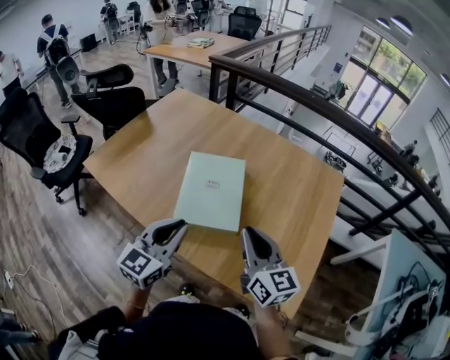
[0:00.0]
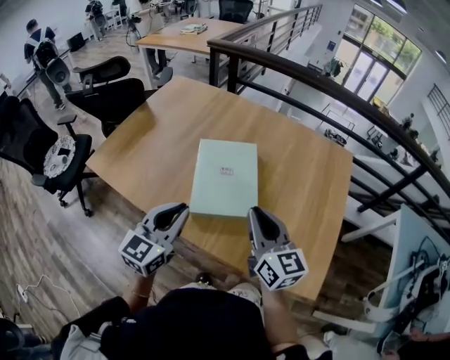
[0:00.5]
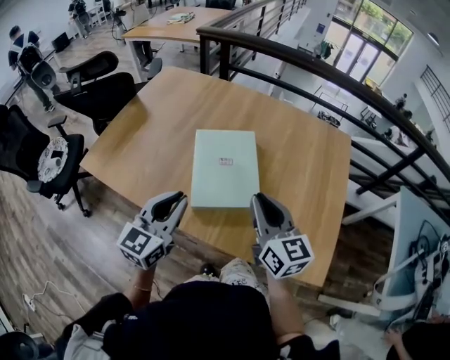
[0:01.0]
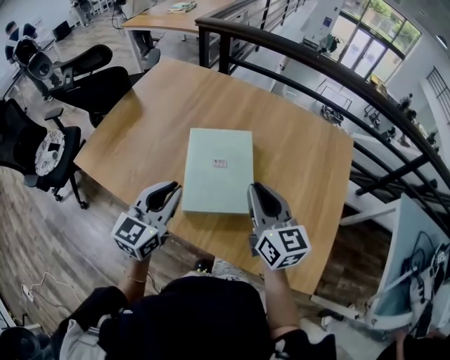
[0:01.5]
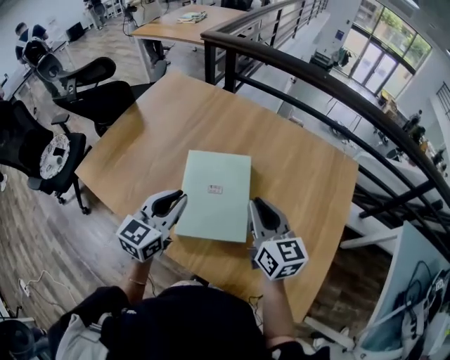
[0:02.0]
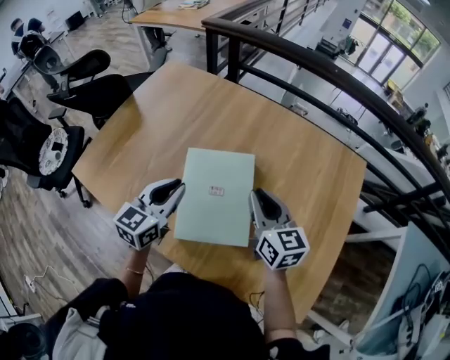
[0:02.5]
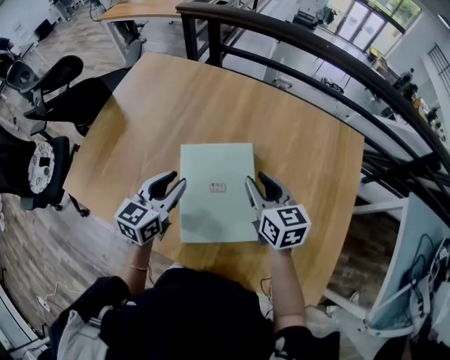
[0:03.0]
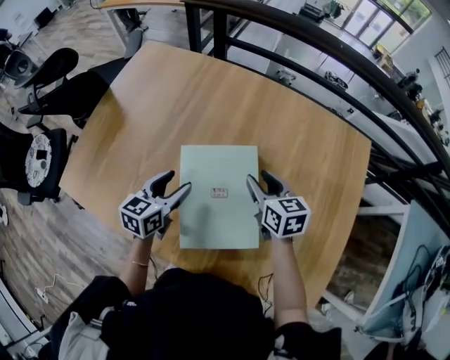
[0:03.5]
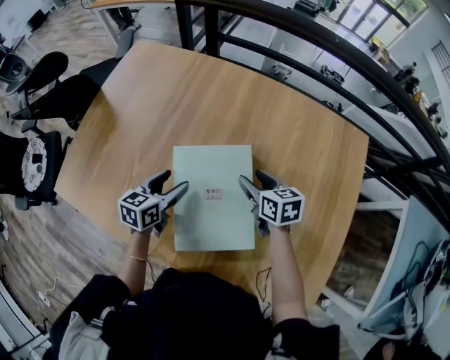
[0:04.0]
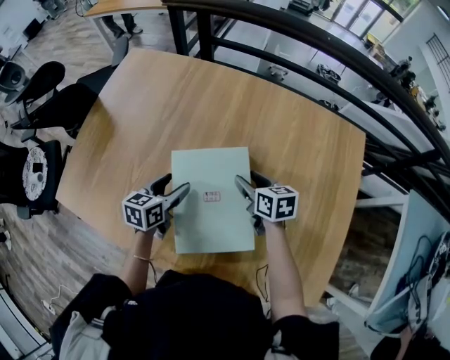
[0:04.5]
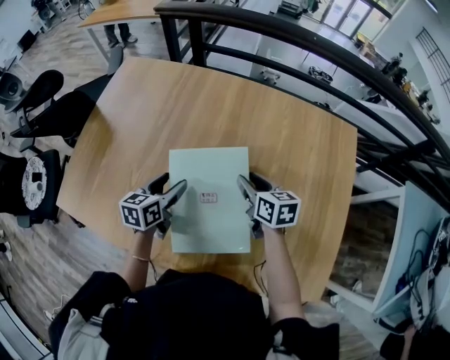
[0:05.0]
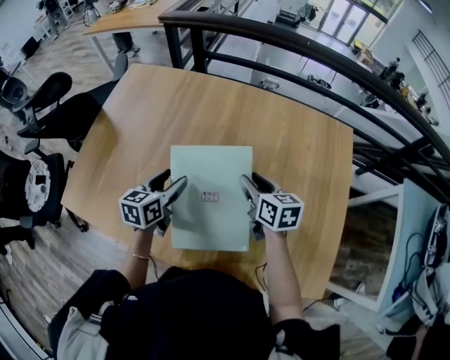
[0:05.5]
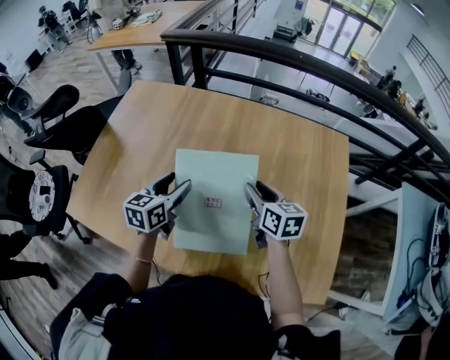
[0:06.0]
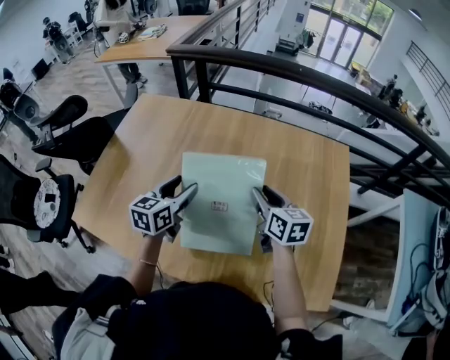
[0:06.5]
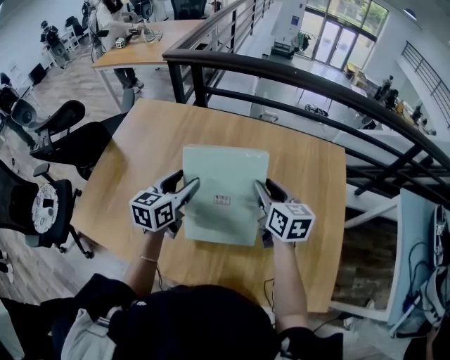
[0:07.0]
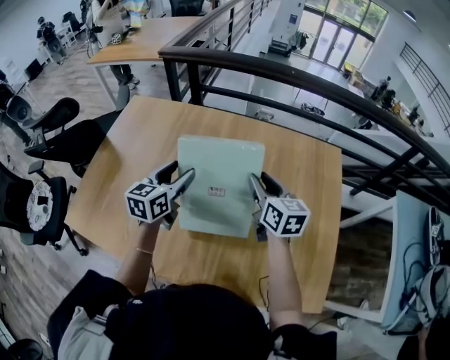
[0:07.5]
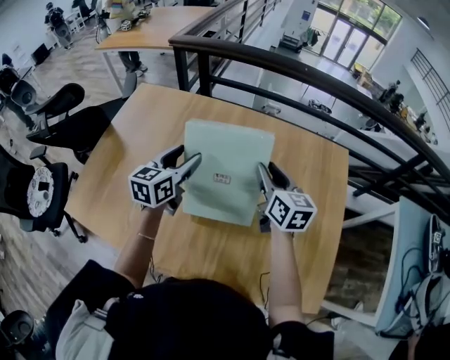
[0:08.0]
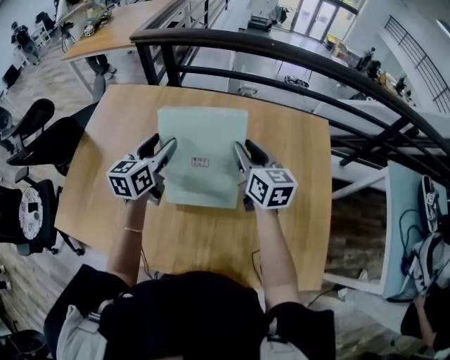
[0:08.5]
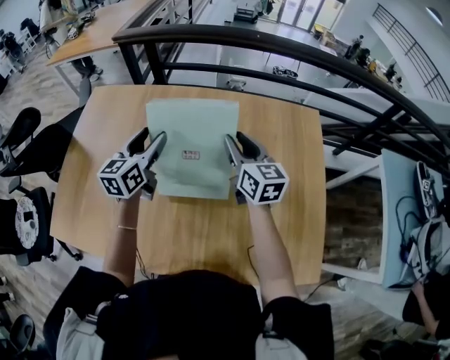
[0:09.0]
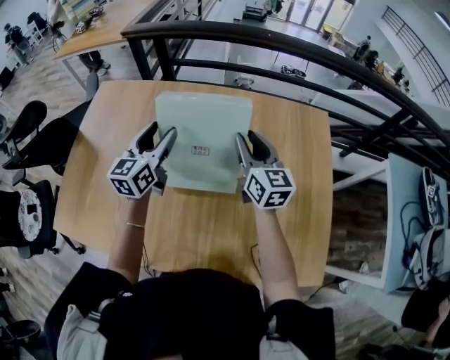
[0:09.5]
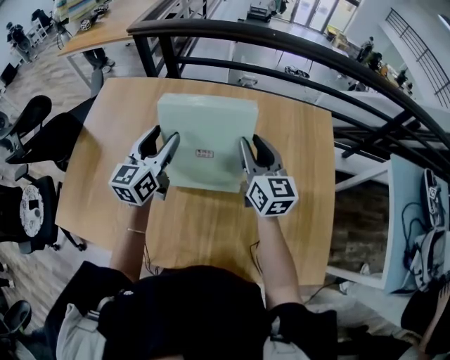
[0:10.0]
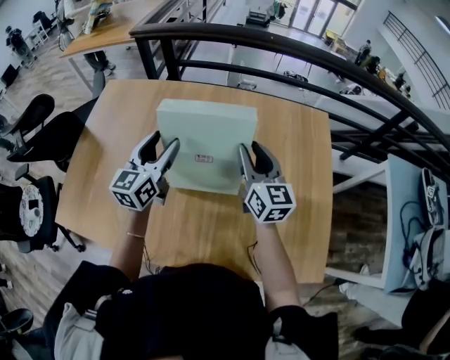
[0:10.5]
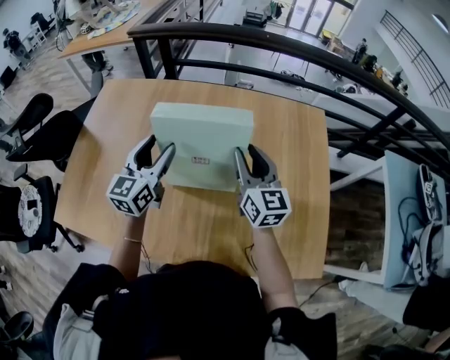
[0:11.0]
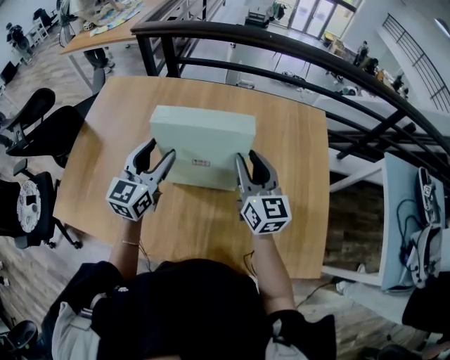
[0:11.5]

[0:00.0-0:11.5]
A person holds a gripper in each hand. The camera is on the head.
0:00.0 to 0:02.0: The grippers both shift forward by approximately 15 cm.
0:02.0 to 0:04.0: The two grippers go approximately 25 cm downward and forward. The left gripper rotates some 30 degrees, and opens. The right gripper changes its angle by approximately 30 degrees, and opens.
0:04.0 to 0:06.0: The right gripper heads upward and backward, covering roughly 10 cm, while the left gripper travels upward by about 10 cm.
0:06.0 to 0:07.5: The right gripper travels upward by some 5 cm; the left gripper heads upward and forward, covering roughly 10 cm.
0:07.5 to 0:09.5: The left gripper heads forward, covering roughly 5 cm, while the right gripper changes place by some 5 cm.
0:09.5 to 0:11.5: Both grippers move backward, some 10 cm.

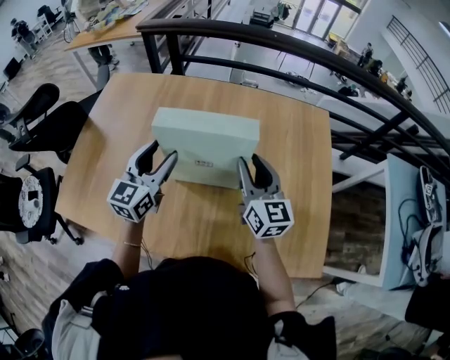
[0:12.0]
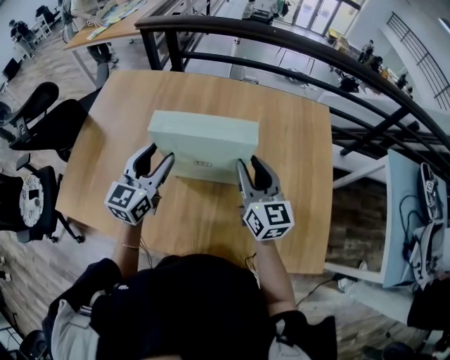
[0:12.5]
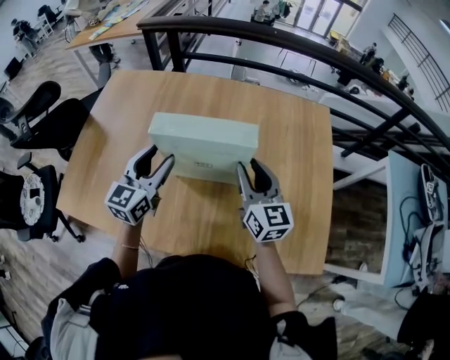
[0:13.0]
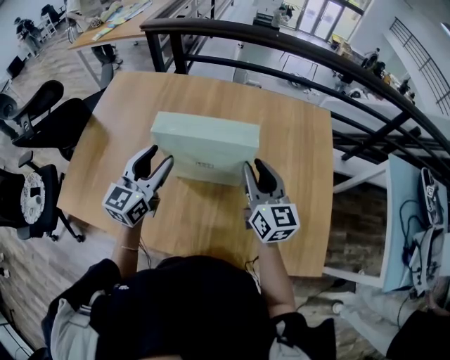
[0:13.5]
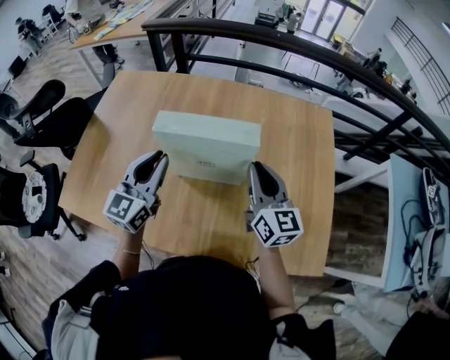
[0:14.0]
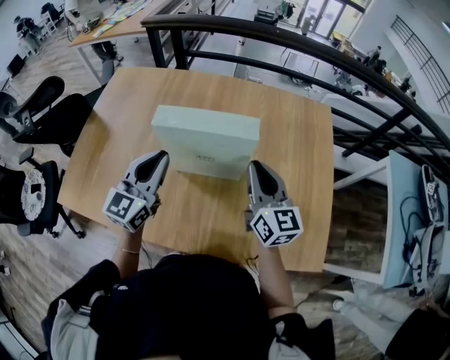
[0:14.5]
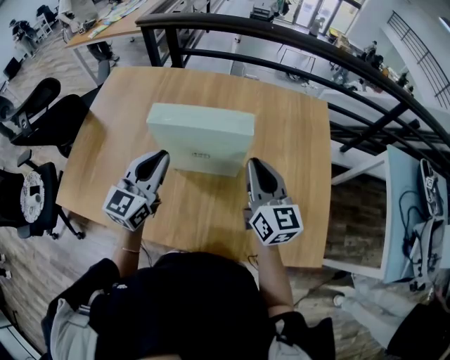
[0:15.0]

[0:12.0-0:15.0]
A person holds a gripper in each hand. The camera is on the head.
0:12.0 to 0:13.5: The grippers move only a little.
0:13.5 to 0:15.0: The right gripper closes its fingers; the left gripper closes up.

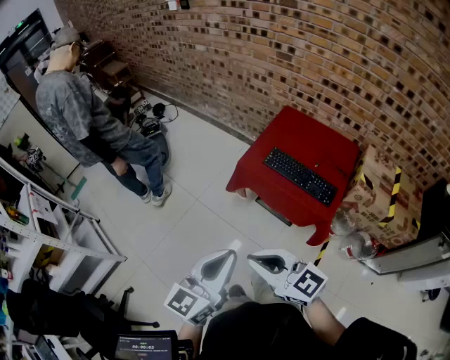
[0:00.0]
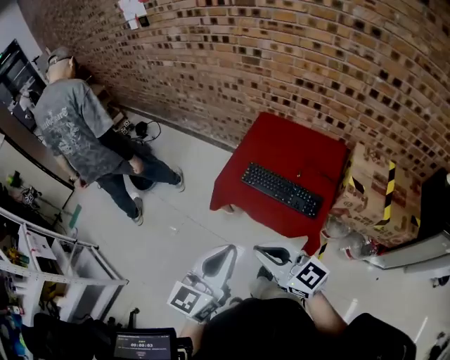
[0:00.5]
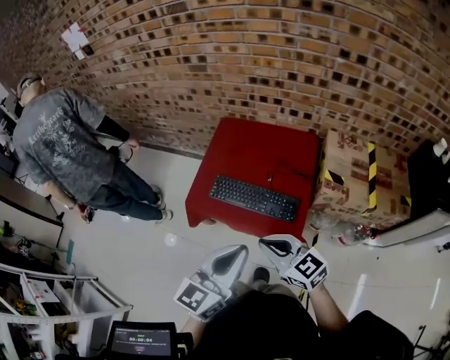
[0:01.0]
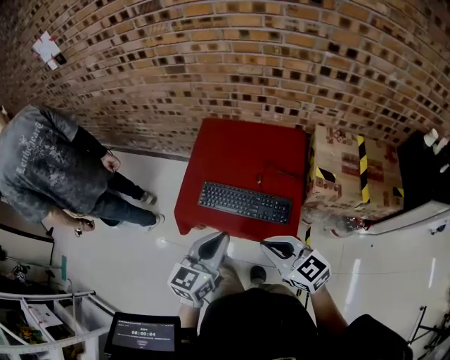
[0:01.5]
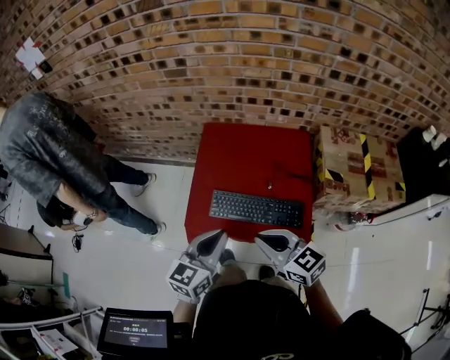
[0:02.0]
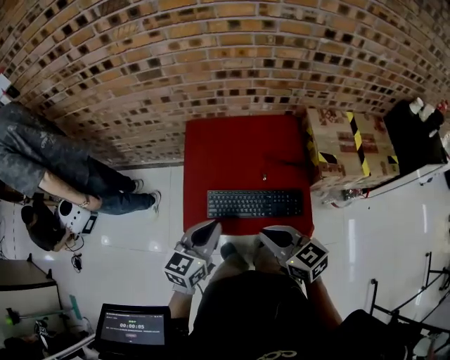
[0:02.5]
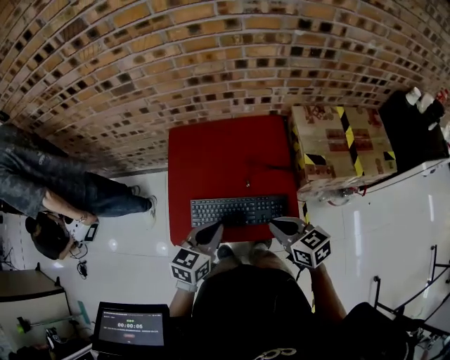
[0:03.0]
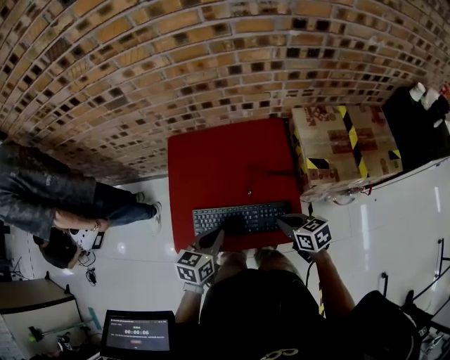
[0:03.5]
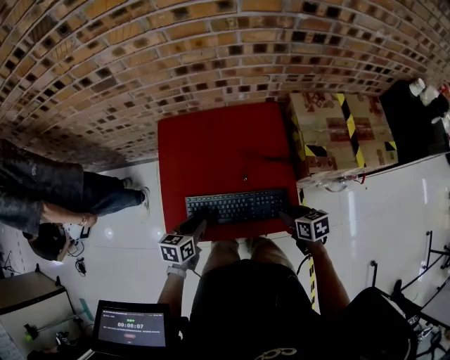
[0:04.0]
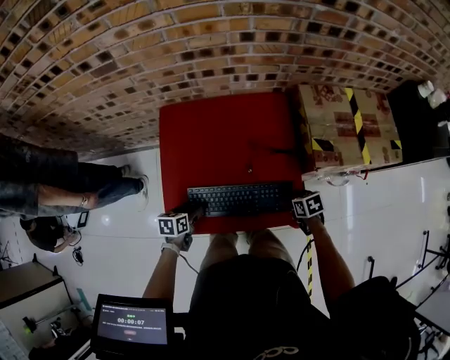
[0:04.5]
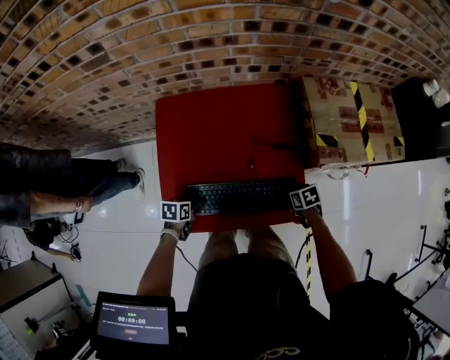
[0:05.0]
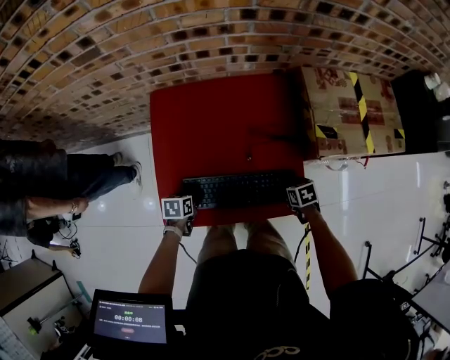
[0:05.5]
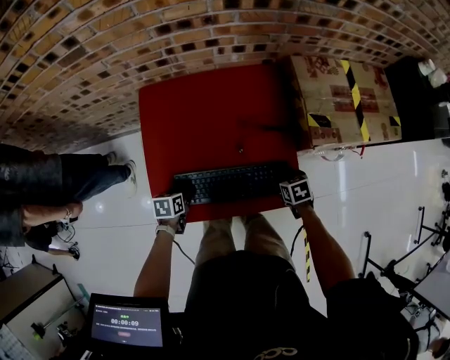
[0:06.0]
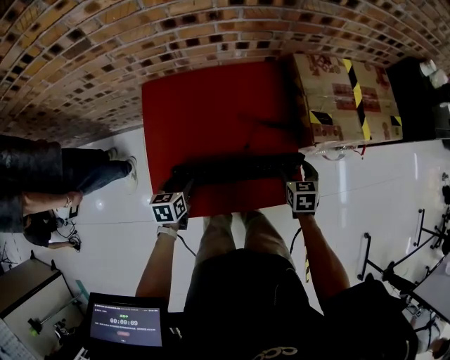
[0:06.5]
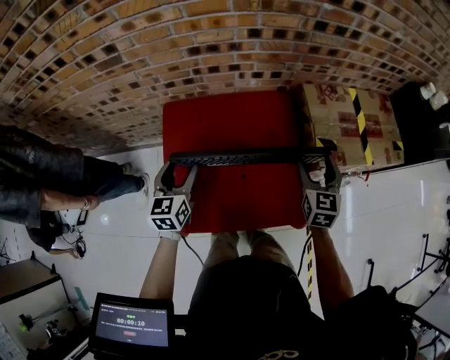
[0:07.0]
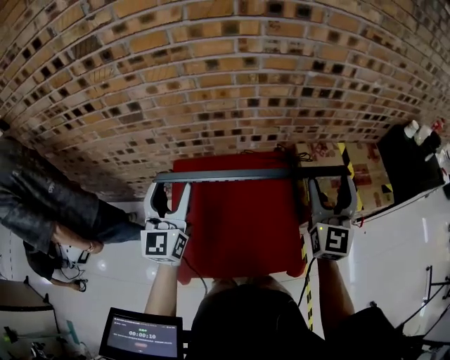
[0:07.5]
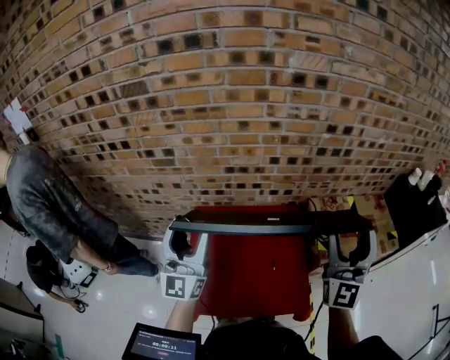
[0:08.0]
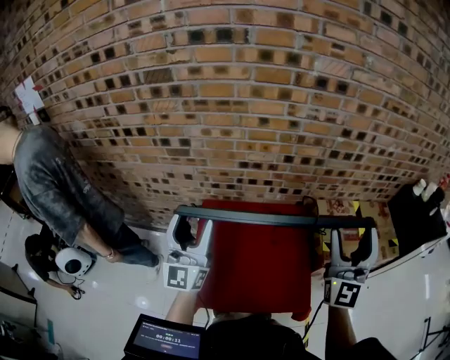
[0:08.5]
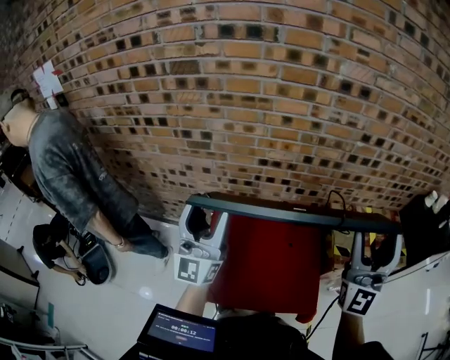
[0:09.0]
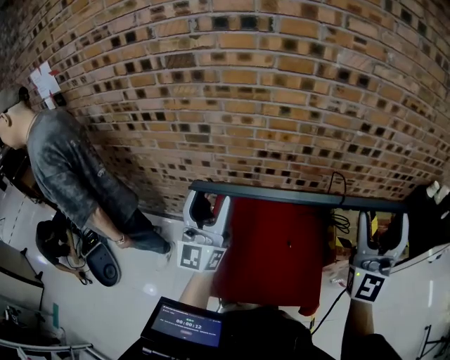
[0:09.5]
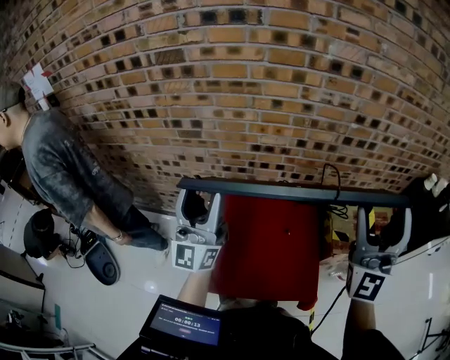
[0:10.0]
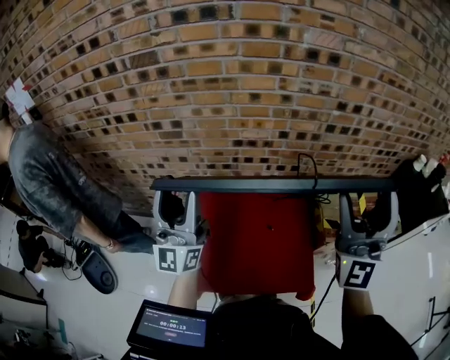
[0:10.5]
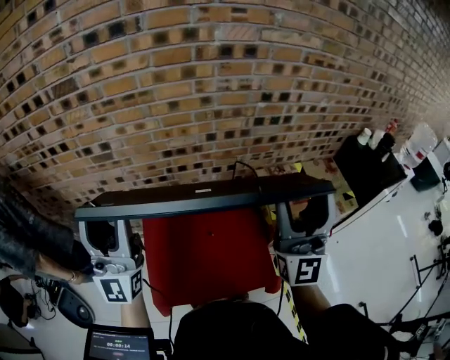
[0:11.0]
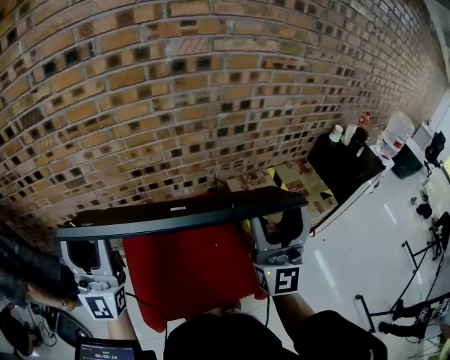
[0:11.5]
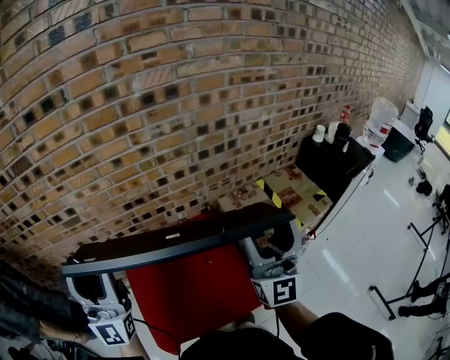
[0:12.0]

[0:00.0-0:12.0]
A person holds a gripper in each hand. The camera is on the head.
0:00.0 to 0:02.0: The right gripper moves roughly 40 cm, and swivels some 40 degrees. Meanwhile the left gripper moves approximately 40 cm, and swivels approximately 30 degrees.
0:02.0 to 0:04.0: The right gripper goes about 30 cm downward and to the right, and angles its fingers downward, by some 30 degrees. Meanwhile the left gripper goes some 25 cm downward and forward, and turns by roughly 30 degrees.
0:04.0 to 0:06.0: Both grippers travel together downward, roughly 15 cm. The right gripper rotates roughly 20 degrees, and opens; the left gripper opens up.
0:06.0 to 0:08.0: The grippers both shift upward by some 60 cm. The left gripper tilts its fingers about 90 degrees upward. Meanwhile the right gripper tips its fingers upward by approximately 90 degrees.
0:08.0 to 0:10.0: The left gripper shifts by some 5 cm; the right gripper goes approximately 10 cm upward and to the left.
0:10.0 to 0:12.0: The right gripper moves to the right and downward, about 10 cm, and changes its angle by some 20 degrees, while the left gripper moves to the right and upward, roughly 10 cm, and rotates about 20 degrees.
